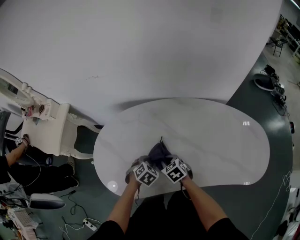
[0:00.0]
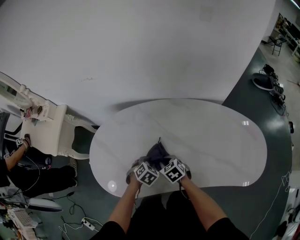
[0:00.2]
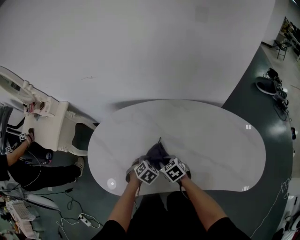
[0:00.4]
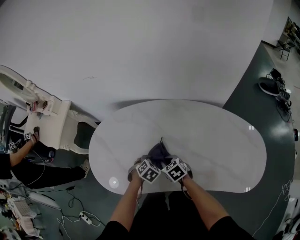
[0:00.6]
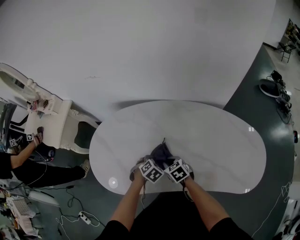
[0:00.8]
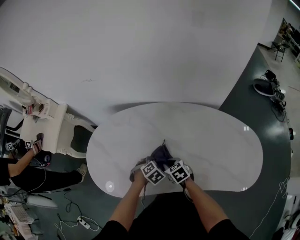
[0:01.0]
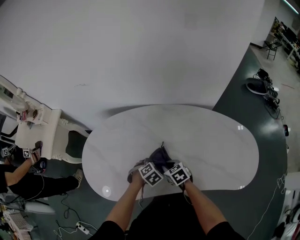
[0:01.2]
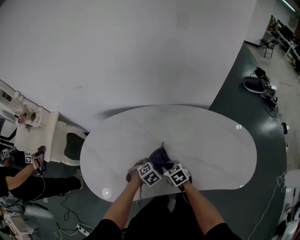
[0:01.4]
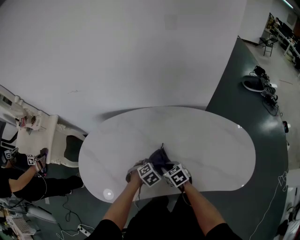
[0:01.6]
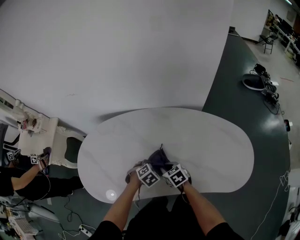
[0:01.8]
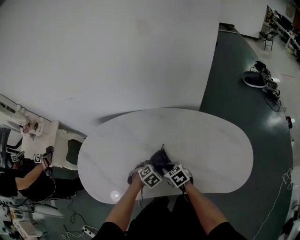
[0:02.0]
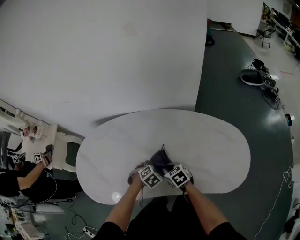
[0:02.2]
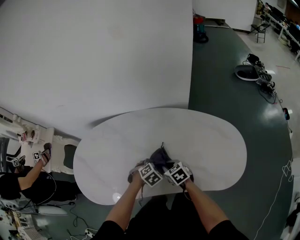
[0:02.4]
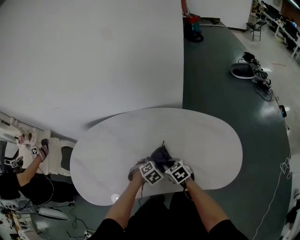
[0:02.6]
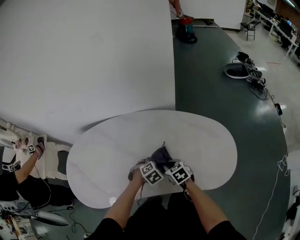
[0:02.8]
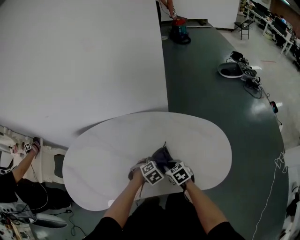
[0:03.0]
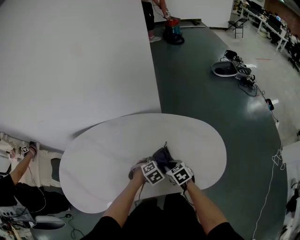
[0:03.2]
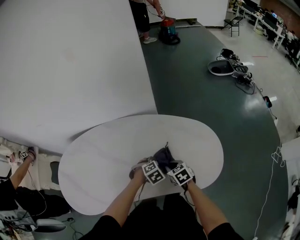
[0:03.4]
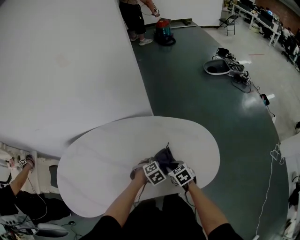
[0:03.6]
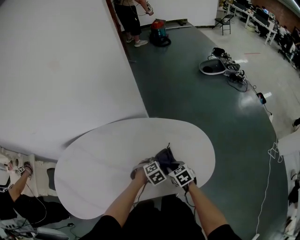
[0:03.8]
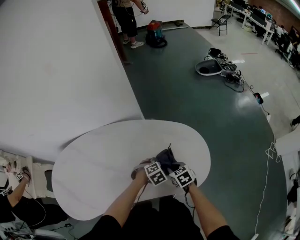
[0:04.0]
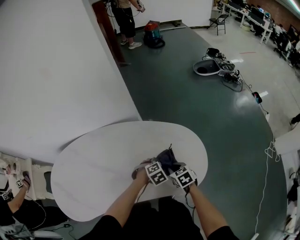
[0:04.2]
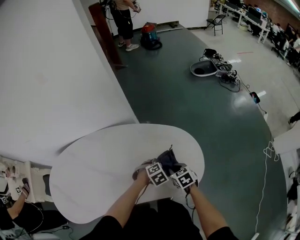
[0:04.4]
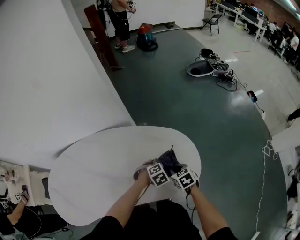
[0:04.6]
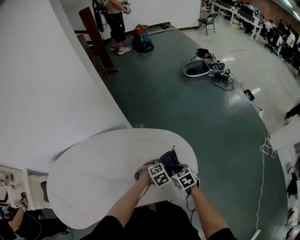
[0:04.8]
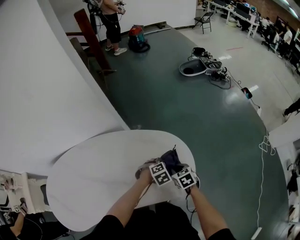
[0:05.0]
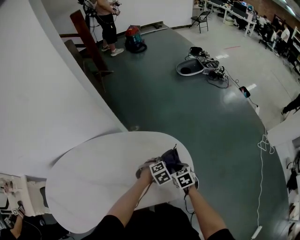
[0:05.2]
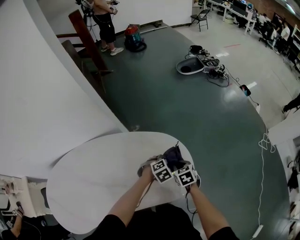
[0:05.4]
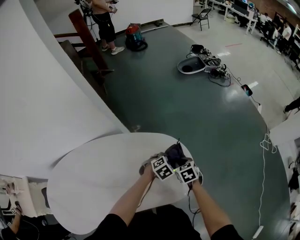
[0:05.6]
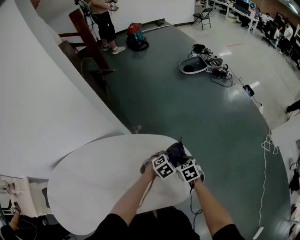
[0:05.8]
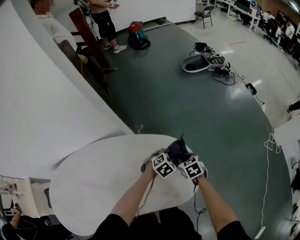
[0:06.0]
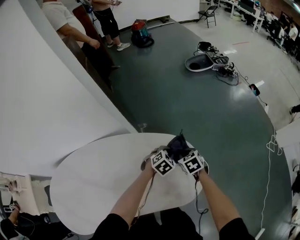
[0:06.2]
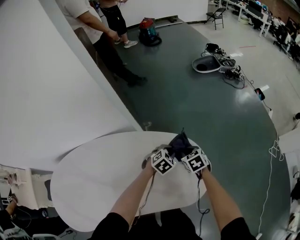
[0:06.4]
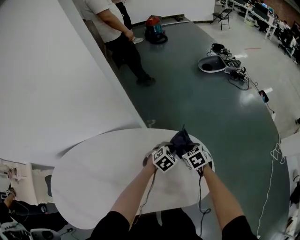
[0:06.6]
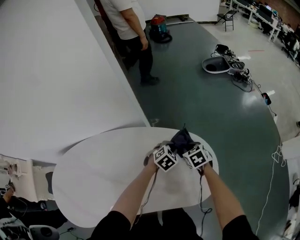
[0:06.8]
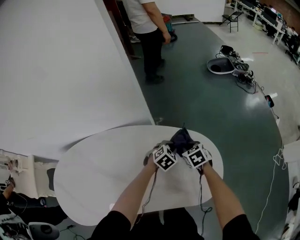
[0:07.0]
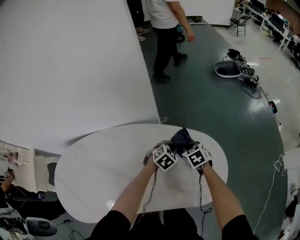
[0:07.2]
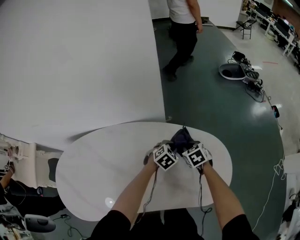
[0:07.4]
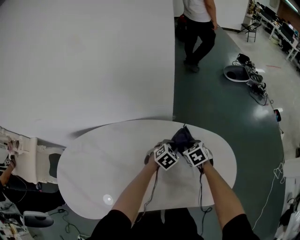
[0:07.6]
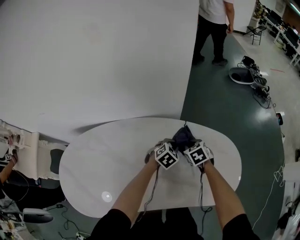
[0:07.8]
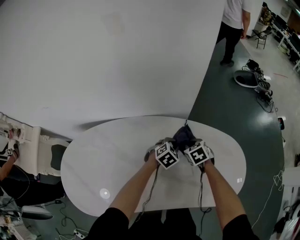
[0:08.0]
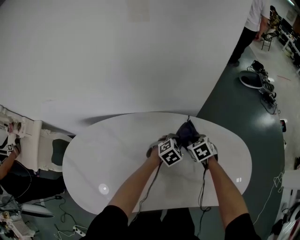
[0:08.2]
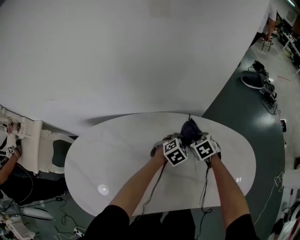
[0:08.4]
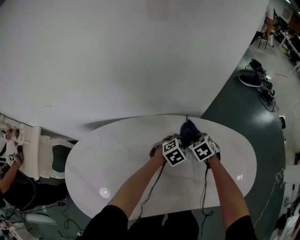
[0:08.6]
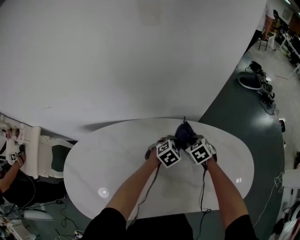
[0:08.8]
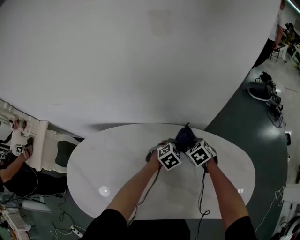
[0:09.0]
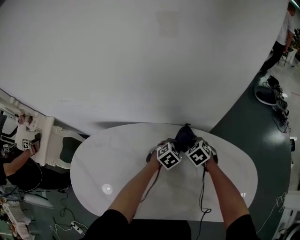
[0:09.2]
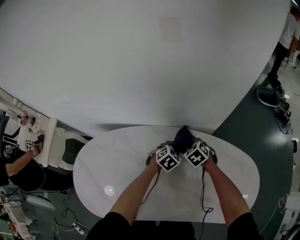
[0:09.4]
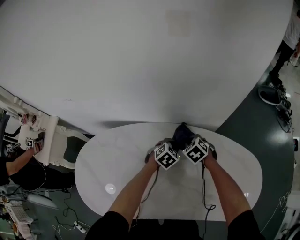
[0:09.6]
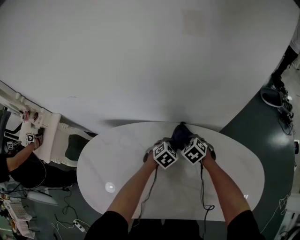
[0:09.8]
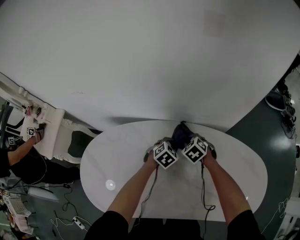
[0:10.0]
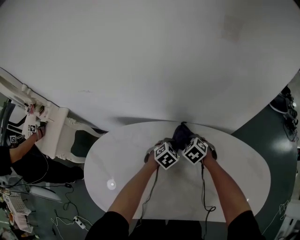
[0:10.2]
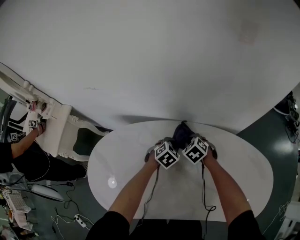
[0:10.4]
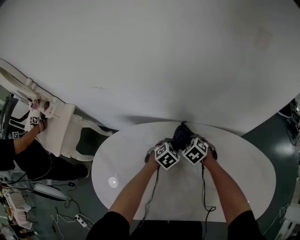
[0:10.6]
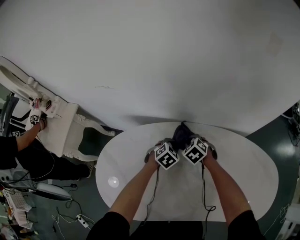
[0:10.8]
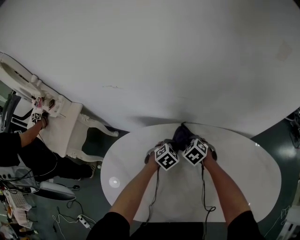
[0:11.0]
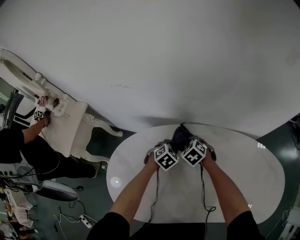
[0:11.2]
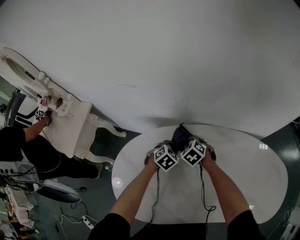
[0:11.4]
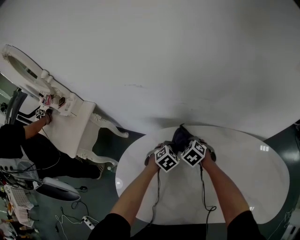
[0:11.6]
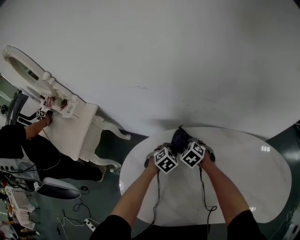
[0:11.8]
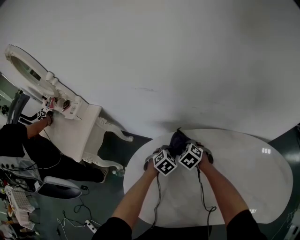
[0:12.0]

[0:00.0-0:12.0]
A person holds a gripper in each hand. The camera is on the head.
0:00.0 to 0:01.6: The left gripper moves approximately 15 cm, while the right gripper ends up approximately 15 cm from where it was.
0:01.6 to 0:03.0: The left gripper changes place by approximately 20 cm. Meanwhile the right gripper ends up about 20 cm from where it was.
0:03.0 to 0:04.4: The left gripper ends up about 20 cm from where it was. Meanwhile the right gripper ends up some 20 cm from where it was.
0:04.4 to 0:06.0: The grippers both shift forward and to the right by some 15 cm.
0:06.0 to 0:07.6: Both grippers move to the left, about 25 cm. The right gripper changes its angle by about 20 degrees. Meanwhile the left gripper changes its angle by roughly 20 degrees.
0:07.6 to 0:09.0: The two grippers go some 15 cm to the left.
0:09.0 to 0:10.4: The two grippers go about 20 cm to the left.
0:10.4 to 0:12.0: Both grippers travel together to the left, roughly 30 cm.

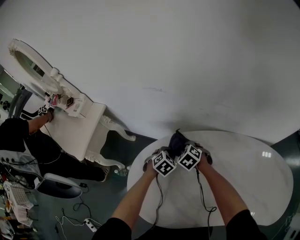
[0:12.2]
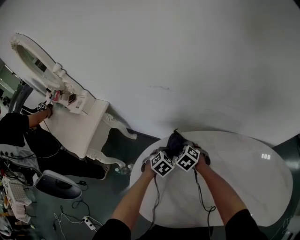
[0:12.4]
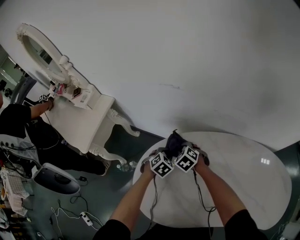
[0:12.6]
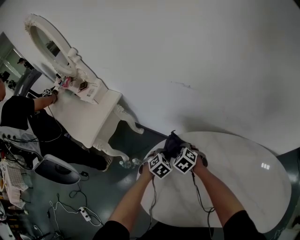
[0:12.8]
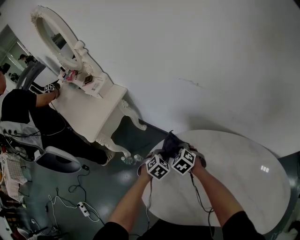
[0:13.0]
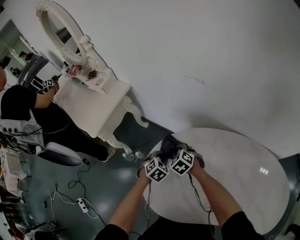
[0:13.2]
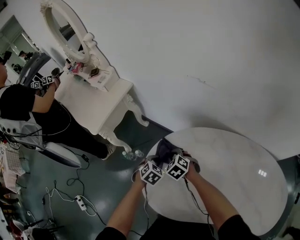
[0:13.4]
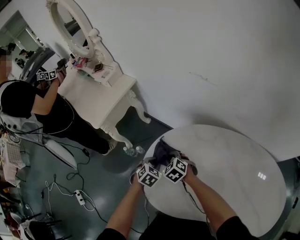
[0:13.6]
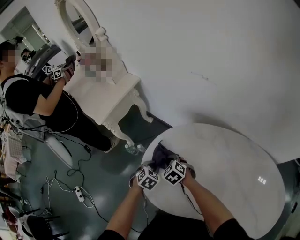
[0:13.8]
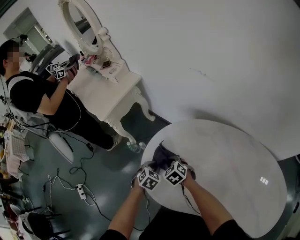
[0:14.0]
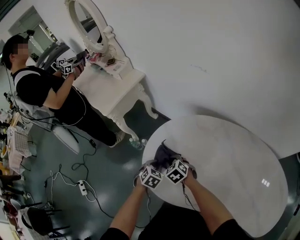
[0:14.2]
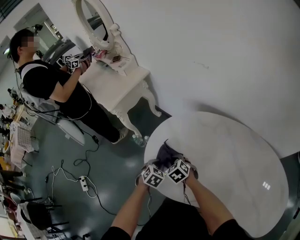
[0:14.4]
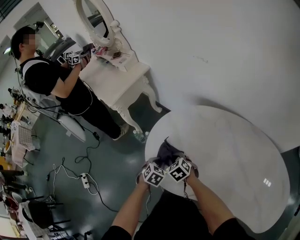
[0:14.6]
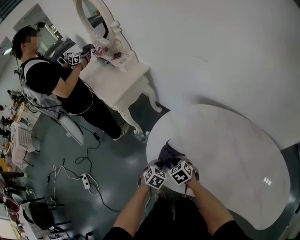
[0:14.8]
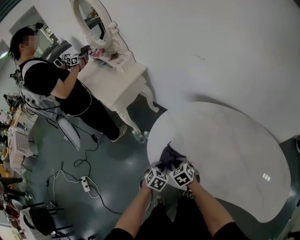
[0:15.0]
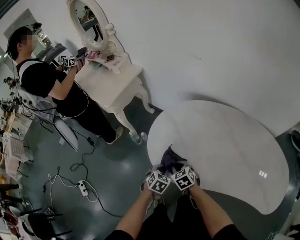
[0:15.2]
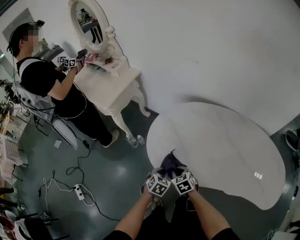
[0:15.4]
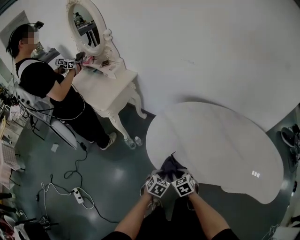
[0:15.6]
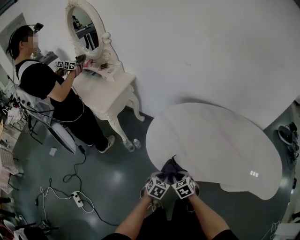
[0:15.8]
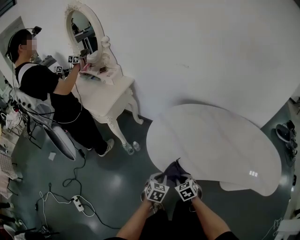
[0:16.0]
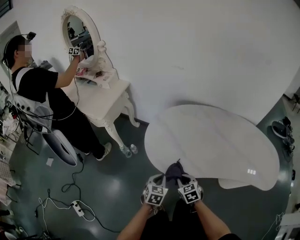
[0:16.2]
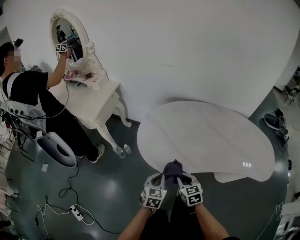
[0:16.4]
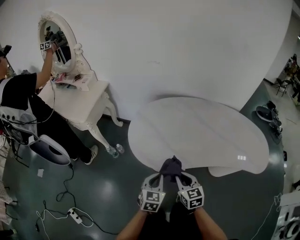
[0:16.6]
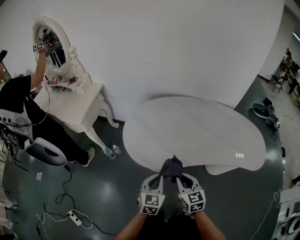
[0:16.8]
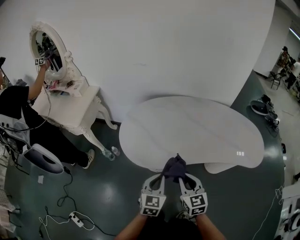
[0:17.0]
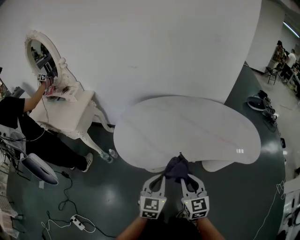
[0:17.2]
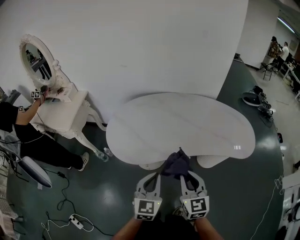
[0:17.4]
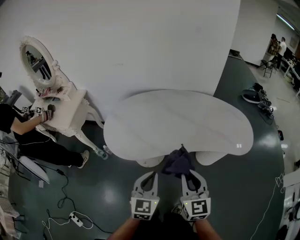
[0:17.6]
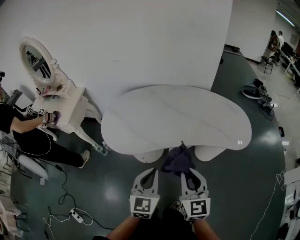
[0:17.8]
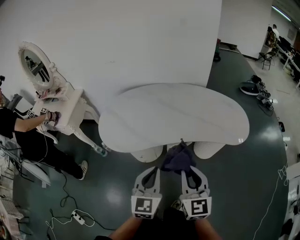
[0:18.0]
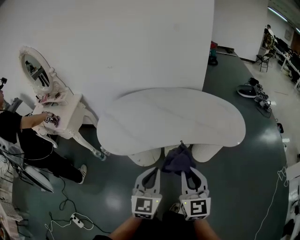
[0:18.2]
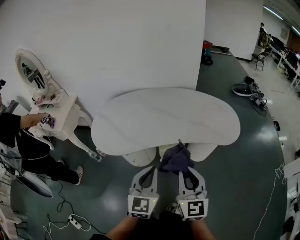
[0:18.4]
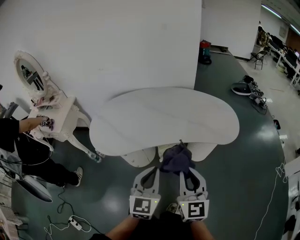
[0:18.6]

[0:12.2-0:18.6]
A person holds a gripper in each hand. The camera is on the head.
0:12.2 to 0:13.8: The right gripper shifts by roughly 25 cm, and turns by some 20 degrees; the left gripper ends up approximately 25 cm from where it was, and swivels some 30 degrees.
0:13.8 to 0:15.4: The grippers both shift backward by some 20 cm. The right gripper swivels some 20 degrees.
0:15.4 to 0:17.0: The two grippers go approximately 25 cm upward, backward and to the right. The left gripper tips its fingers upward by some 30 degrees. Meanwhile the right gripper rotates some 40 degrees.
0:17.0 to 0:18.6: The right gripper travels to the right, backward and upward by about 30 cm, and swivels some 30 degrees, while the left gripper is displaced to the right and upward by about 25 cm.

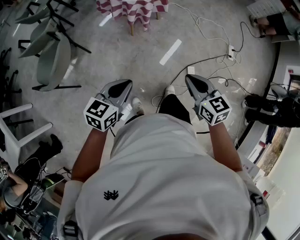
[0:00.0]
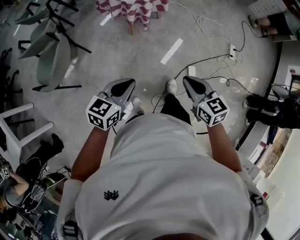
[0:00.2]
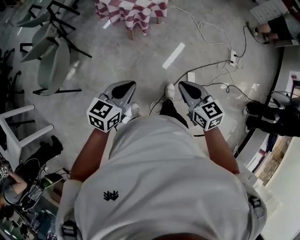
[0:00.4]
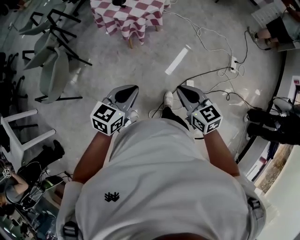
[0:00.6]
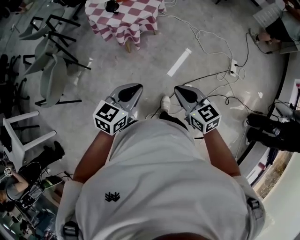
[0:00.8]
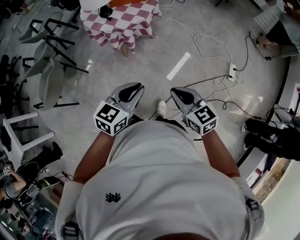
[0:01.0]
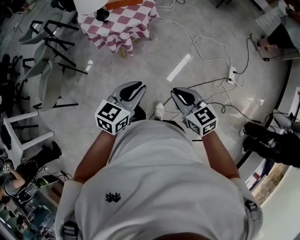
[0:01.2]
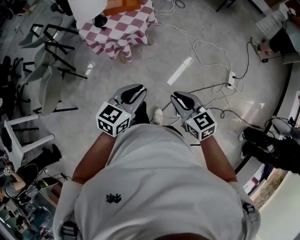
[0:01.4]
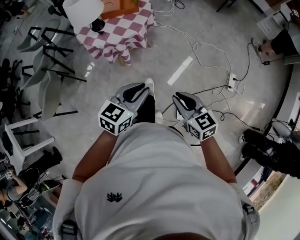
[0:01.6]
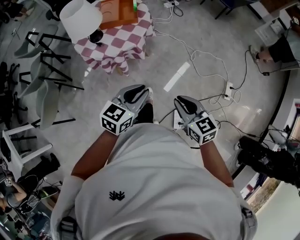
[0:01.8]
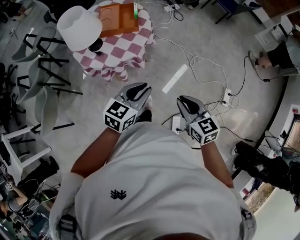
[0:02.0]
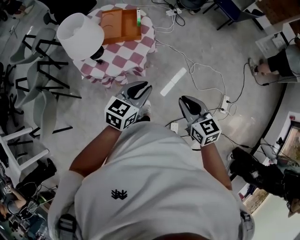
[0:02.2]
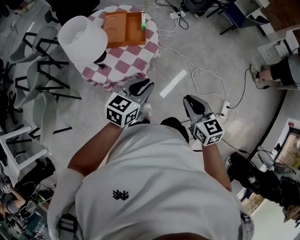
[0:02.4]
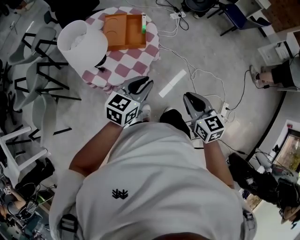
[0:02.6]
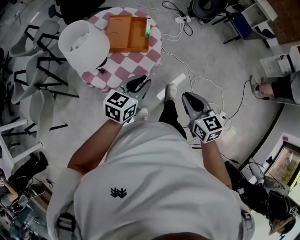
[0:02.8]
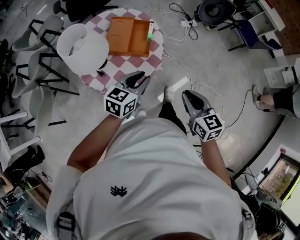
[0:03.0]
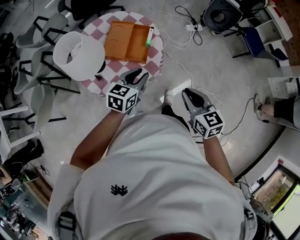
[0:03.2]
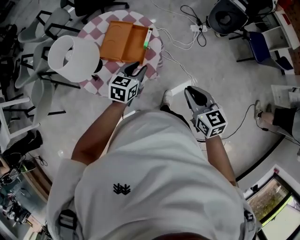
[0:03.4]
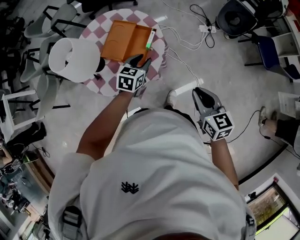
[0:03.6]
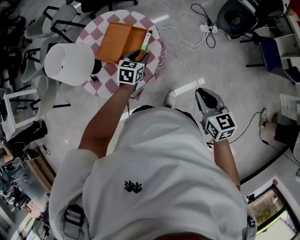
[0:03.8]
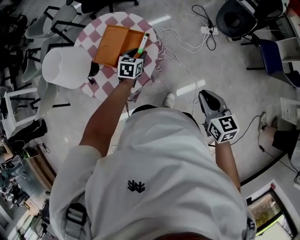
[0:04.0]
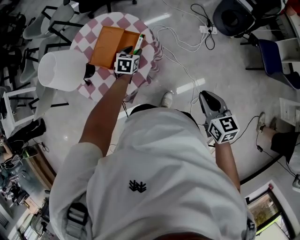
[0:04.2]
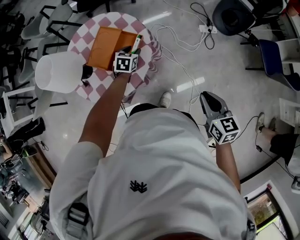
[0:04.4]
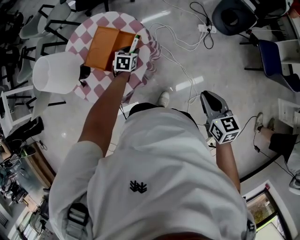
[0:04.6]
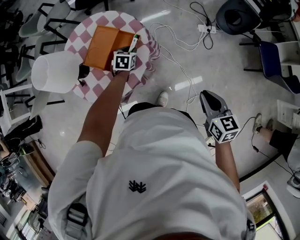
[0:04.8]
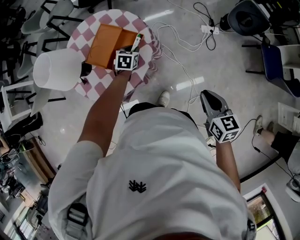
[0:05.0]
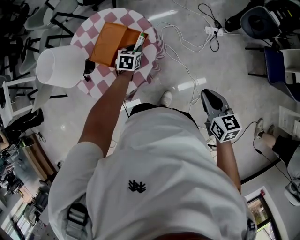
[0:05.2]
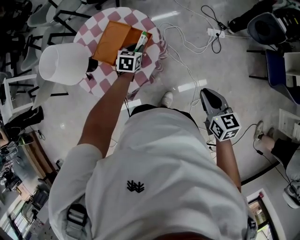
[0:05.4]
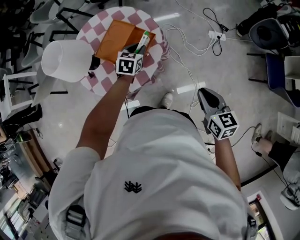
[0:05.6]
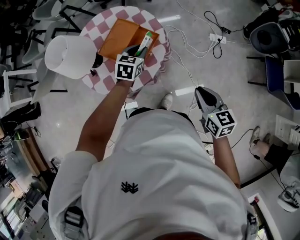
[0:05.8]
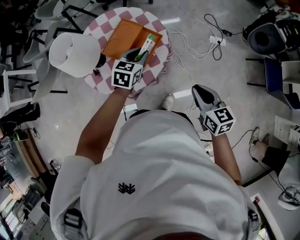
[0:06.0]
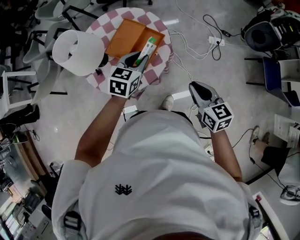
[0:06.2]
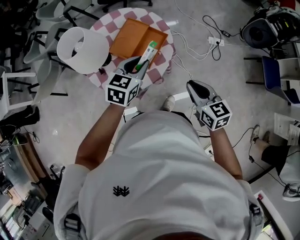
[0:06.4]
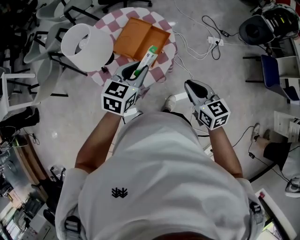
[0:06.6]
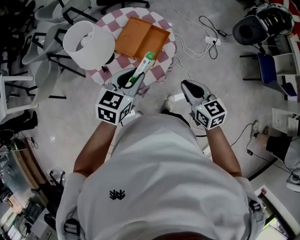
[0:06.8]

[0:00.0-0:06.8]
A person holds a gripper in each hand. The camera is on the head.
0:00.0 to 0:01.4: The two grippers go some 35 cm to the right and forward.
0:01.4 to 0:02.8: The two grippers travel together, forward, approximately 40 cm.
0:02.8 to 0:04.0: The right gripper moves approximately 30 cm. The left gripper shifts by about 35 cm, swivels about 40 degrees, and opens.
0:04.0 to 0:05.4: The right gripper moves forward, some 5 cm.
0:05.4 to 0:06.8: The left gripper shifts approximately 30 cm upward, backward and to the left, and rotates approximately 20 degrees, while the right gripper goes approximately 20 cm to the left.
